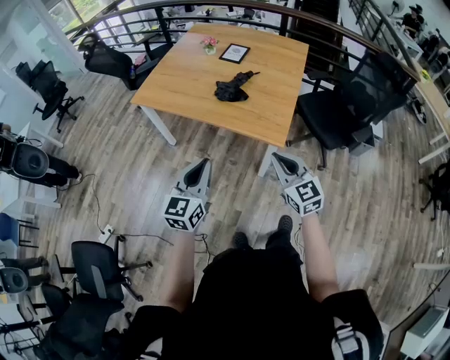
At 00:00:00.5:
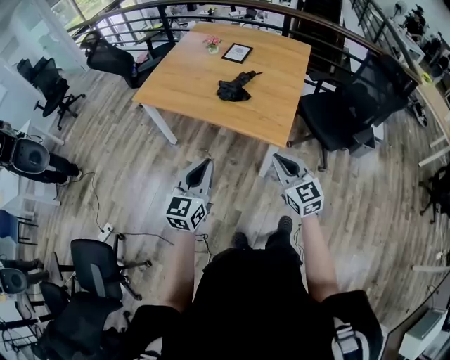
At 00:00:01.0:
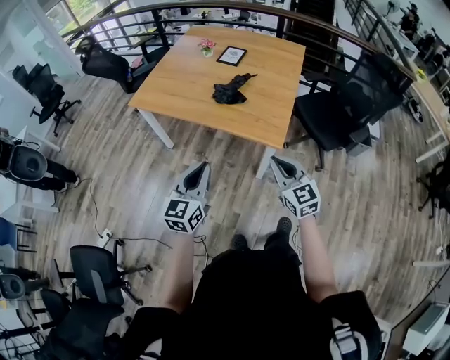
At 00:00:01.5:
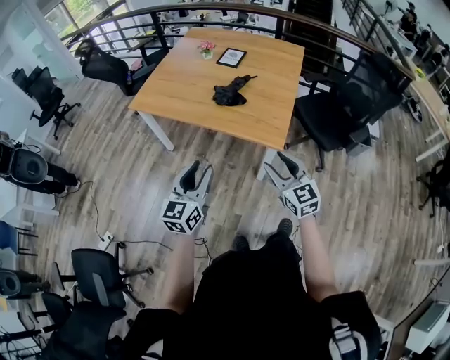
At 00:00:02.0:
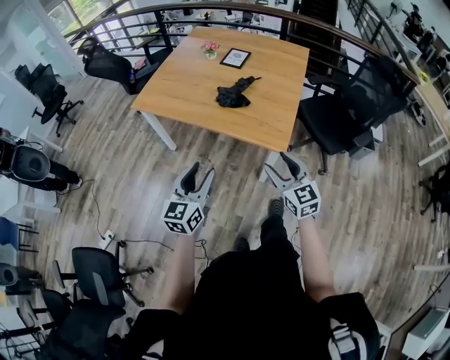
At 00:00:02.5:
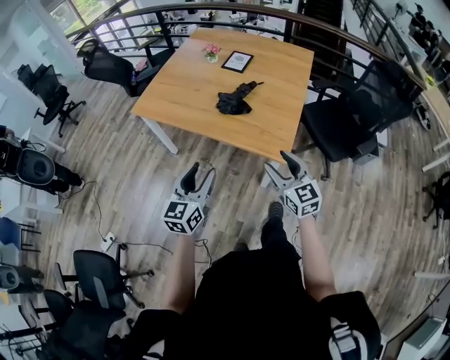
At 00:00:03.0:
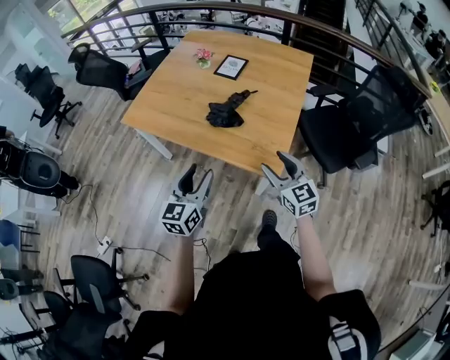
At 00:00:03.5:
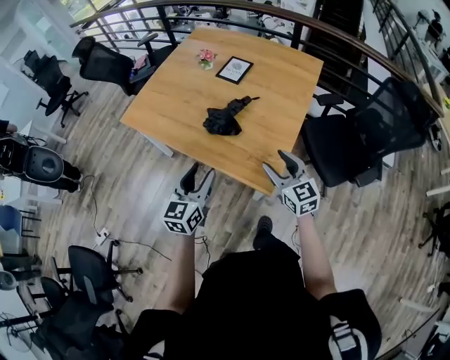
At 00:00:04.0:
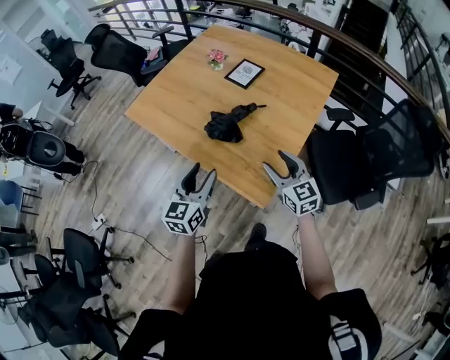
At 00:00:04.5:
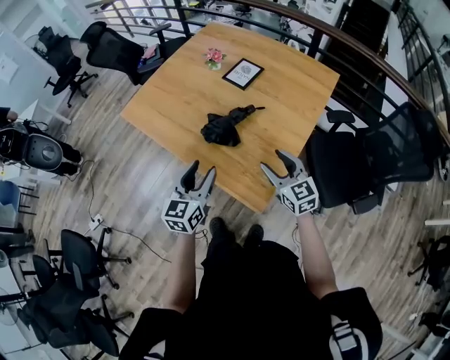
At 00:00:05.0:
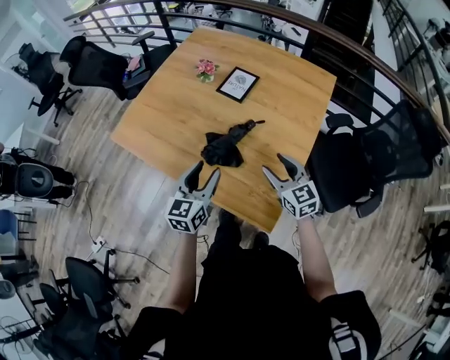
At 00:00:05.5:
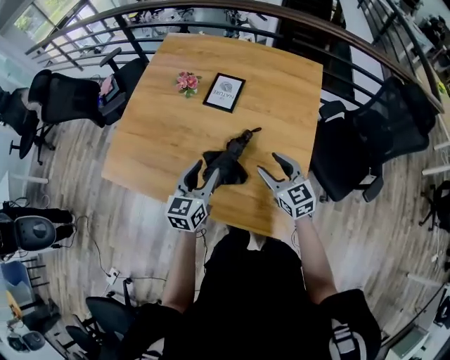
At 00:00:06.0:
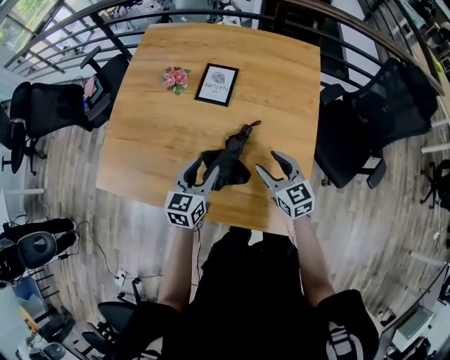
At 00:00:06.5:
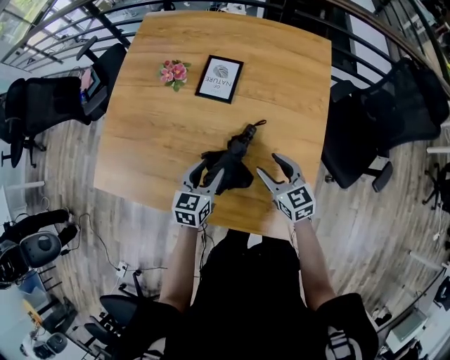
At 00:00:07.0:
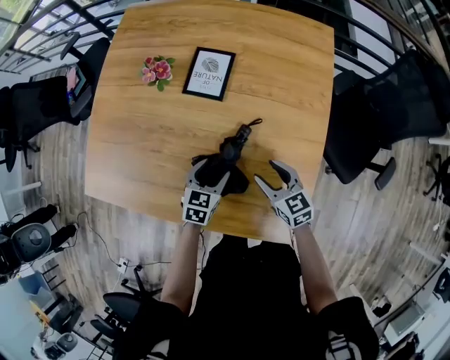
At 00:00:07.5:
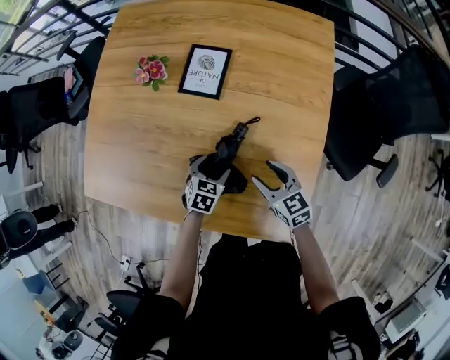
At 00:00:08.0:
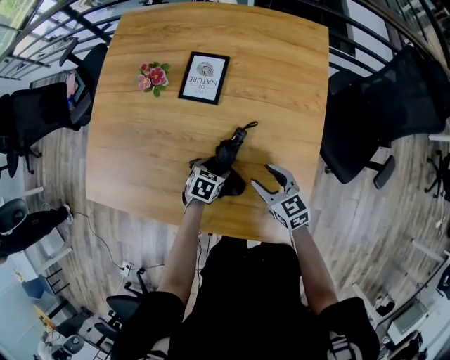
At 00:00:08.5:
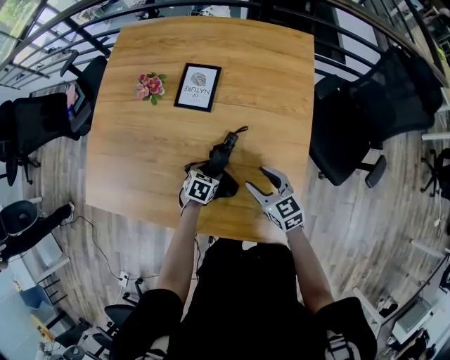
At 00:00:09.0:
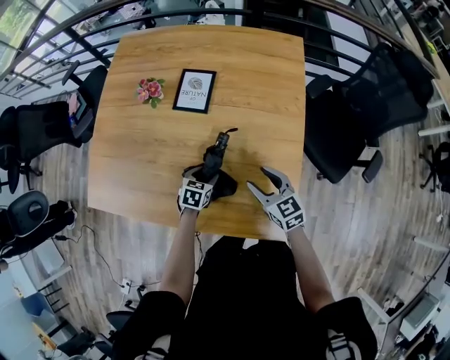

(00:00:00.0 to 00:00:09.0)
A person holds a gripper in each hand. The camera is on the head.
00:00:00.0 - 00:00:02.0: The left gripper opens. The right gripper opens its fingers.
00:00:02.0 - 00:00:04.5: Both grippers travel together forward and to the right, approximately 30 cm.
00:00:04.5 - 00:00:07.0: The right gripper heads forward and downward, covering approximately 25 cm, and swivels approximately 30 degrees, while the left gripper shifts roughly 35 cm forward and downward, and turns by about 40 degrees.
00:00:07.0 - 00:00:09.0: The right gripper heads upward, covering some 5 cm.

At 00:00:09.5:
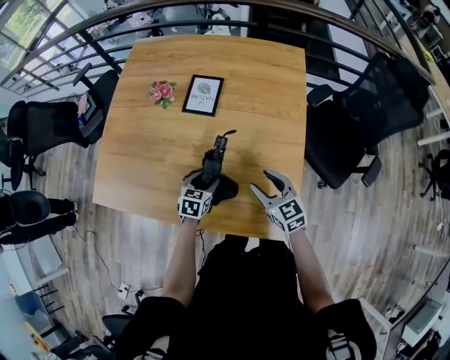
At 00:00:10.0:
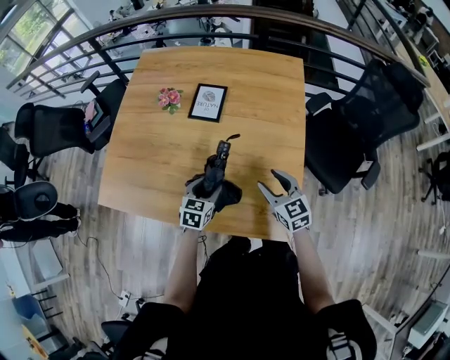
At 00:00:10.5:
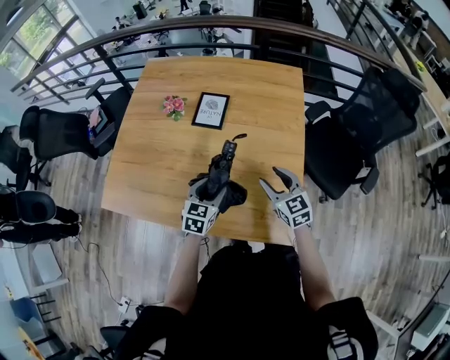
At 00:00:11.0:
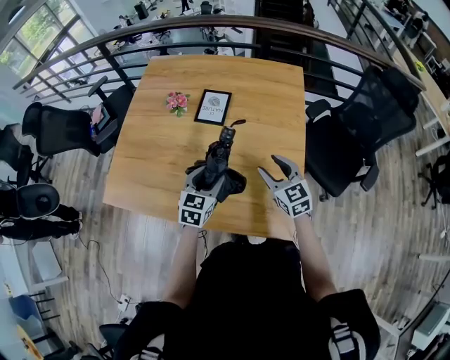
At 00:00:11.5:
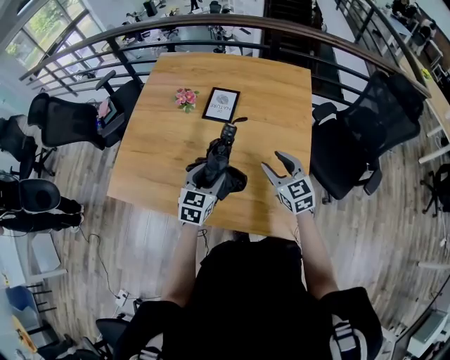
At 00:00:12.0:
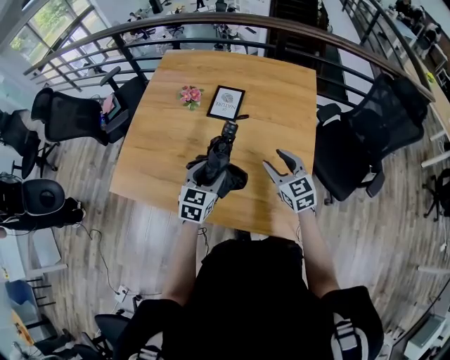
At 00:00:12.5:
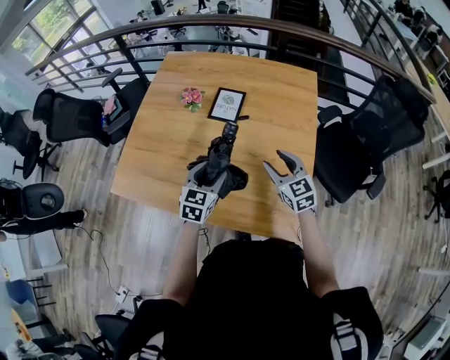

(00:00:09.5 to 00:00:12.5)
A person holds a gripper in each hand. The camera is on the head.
00:00:09.5 - 00:00:11.0: The right gripper moves upward, approximately 5 cm, while the left gripper travels upward by approximately 15 cm, and turns by roughly 20 degrees.
00:00:11.0 - 00:00:12.5: The grippers make only small movements.

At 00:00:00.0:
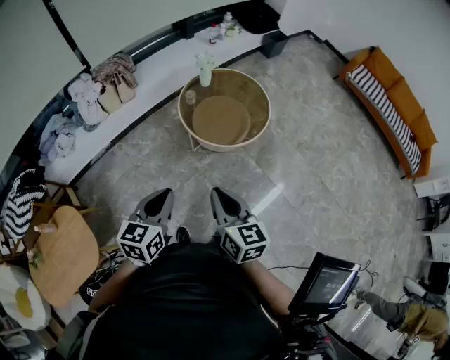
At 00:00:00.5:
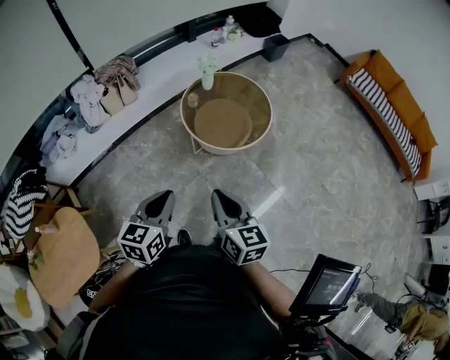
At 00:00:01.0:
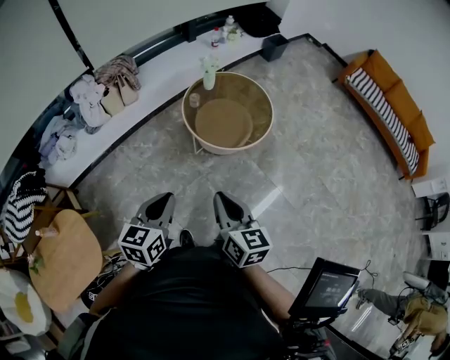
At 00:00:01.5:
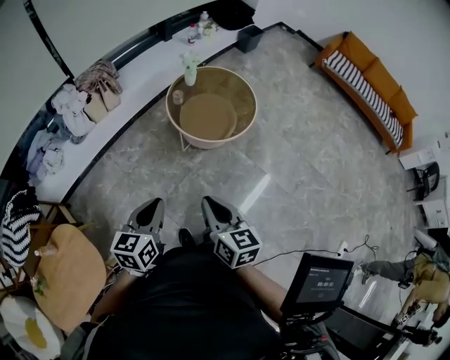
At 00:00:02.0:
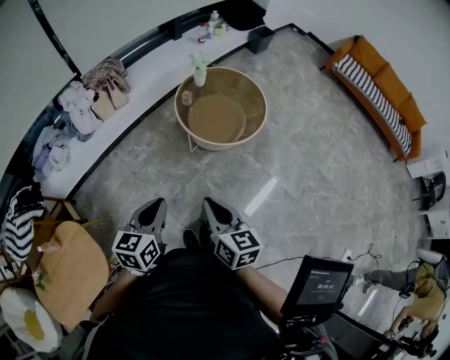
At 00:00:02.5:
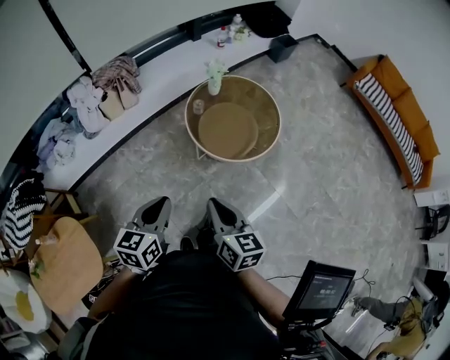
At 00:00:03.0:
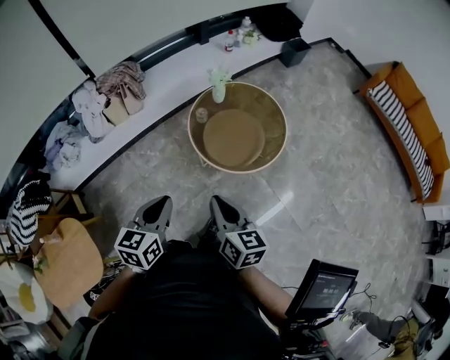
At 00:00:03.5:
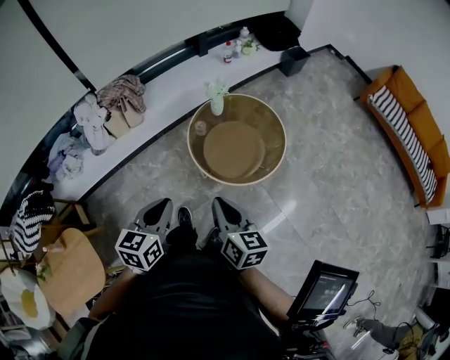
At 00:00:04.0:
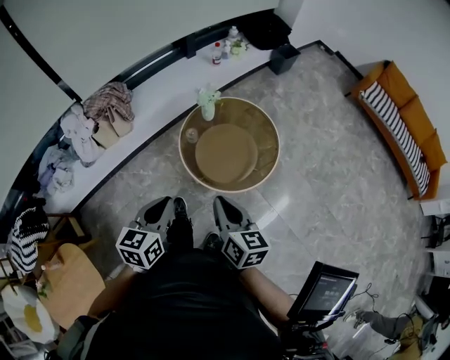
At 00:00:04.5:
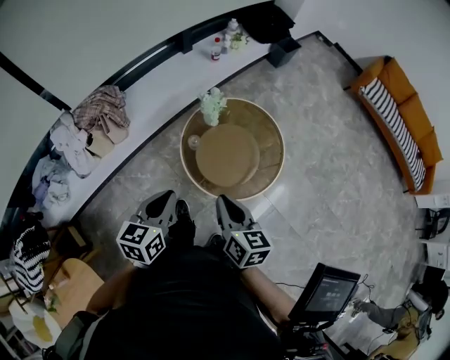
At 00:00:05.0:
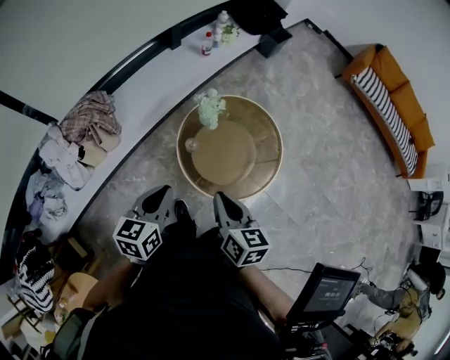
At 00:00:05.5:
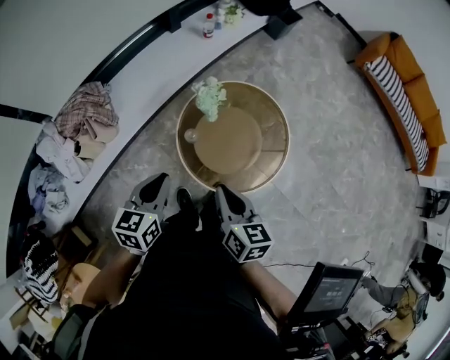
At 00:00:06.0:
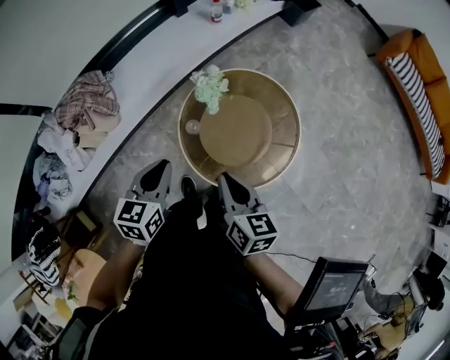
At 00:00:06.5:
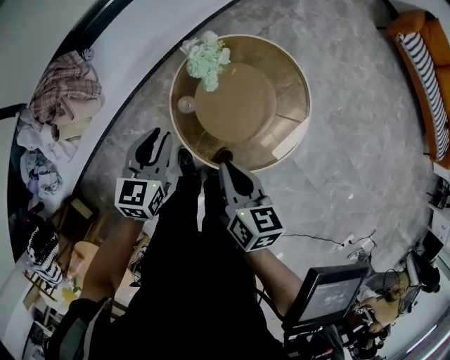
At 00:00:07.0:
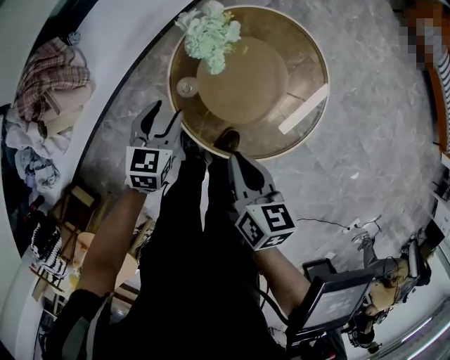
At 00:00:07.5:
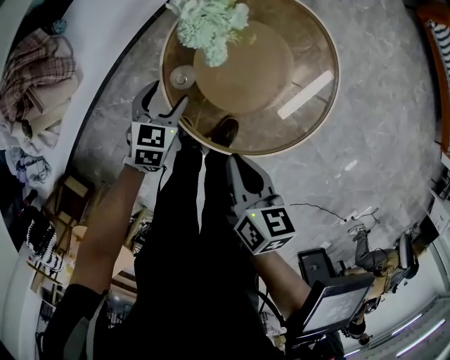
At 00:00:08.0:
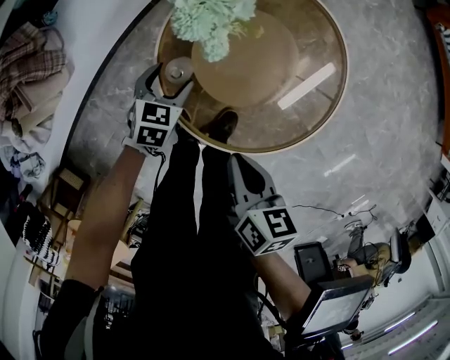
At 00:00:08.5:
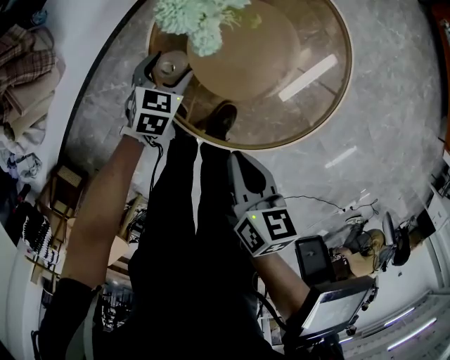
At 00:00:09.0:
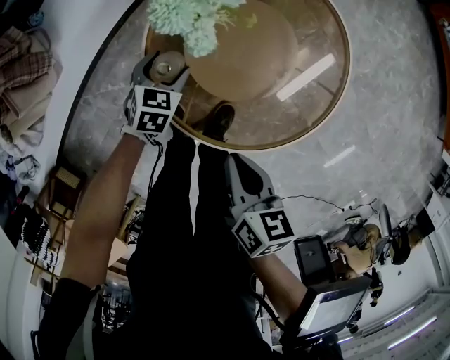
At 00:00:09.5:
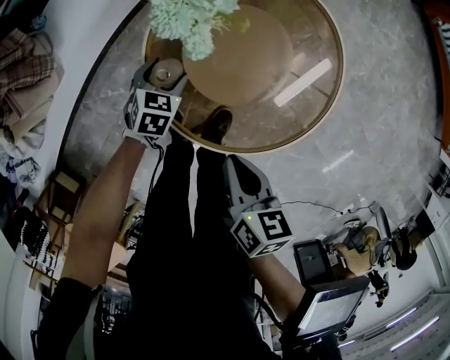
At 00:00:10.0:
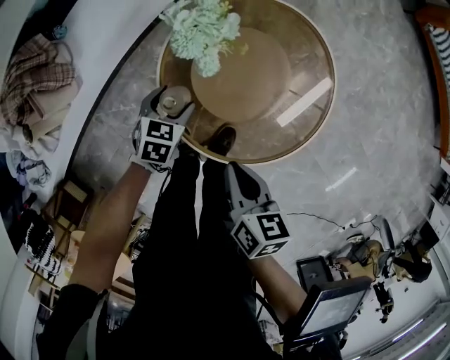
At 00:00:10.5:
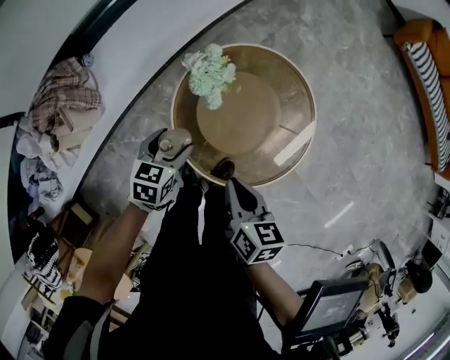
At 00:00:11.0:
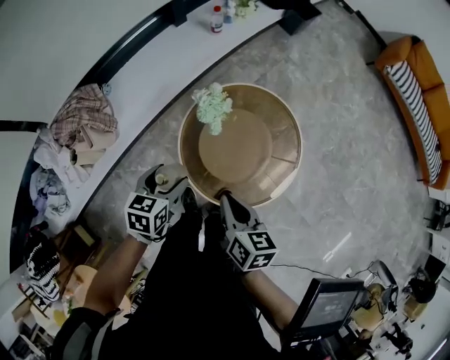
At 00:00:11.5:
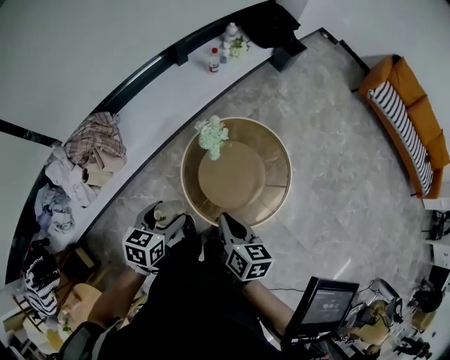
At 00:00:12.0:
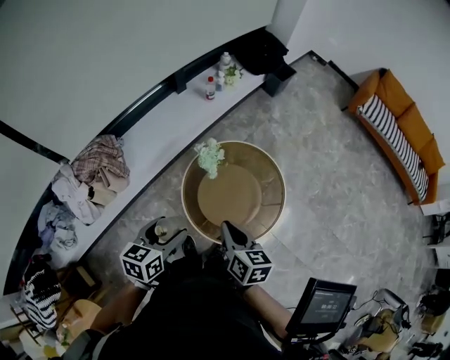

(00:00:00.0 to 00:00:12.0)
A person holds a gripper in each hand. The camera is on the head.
00:00:00.0 - 00:00:02.0: The grippers both shift to the left by approximately 10 cm.
00:00:02.0 - 00:00:04.0: The two grippers go some 25 cm forward.
00:00:04.0 - 00:00:06.0: The two grippers go about 25 cm forward.
00:00:06.0 - 00:00:08.0: The right gripper shifts roughly 20 cm downward, and turns by about 20 degrees. The left gripper travels downward by roughly 35 cm, turns by approximately 30 degrees, and opens up.
00:00:08.0 - 00:00:10.0: The grippers make only small movements.
00:00:10.0 - 00:00:12.0: The left gripper heads upward, covering about 40 cm, and rotates approximately 30 degrees. The right gripper is displaced upward by some 25 cm.

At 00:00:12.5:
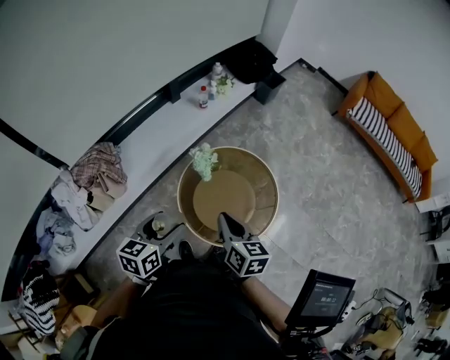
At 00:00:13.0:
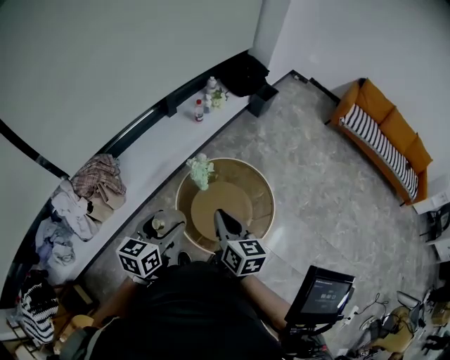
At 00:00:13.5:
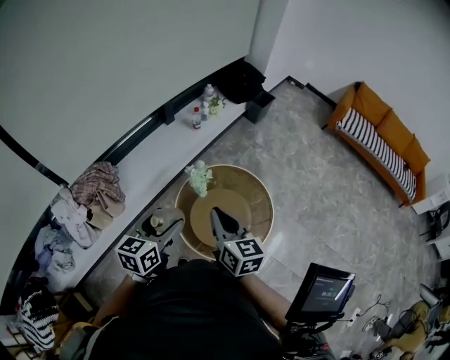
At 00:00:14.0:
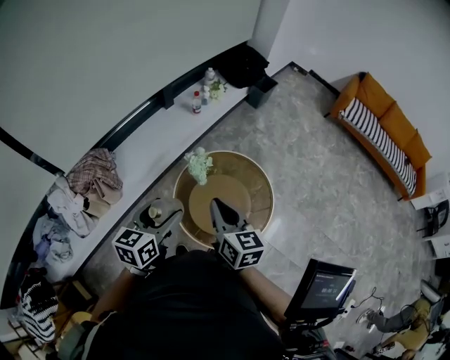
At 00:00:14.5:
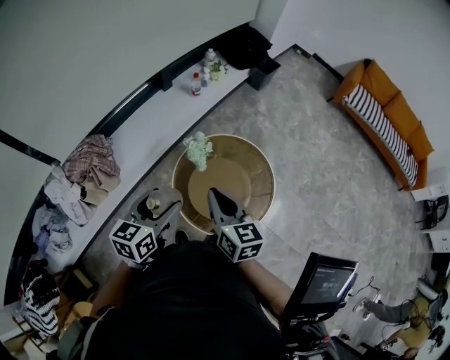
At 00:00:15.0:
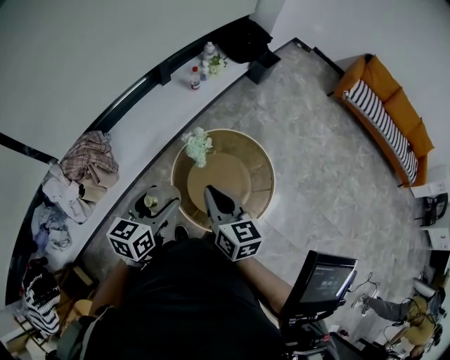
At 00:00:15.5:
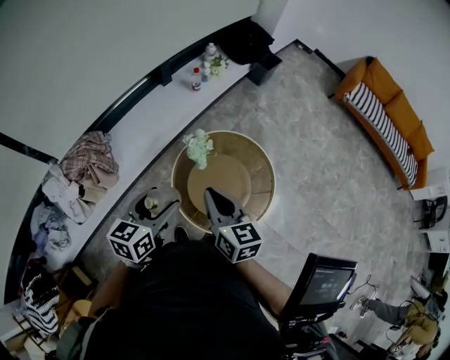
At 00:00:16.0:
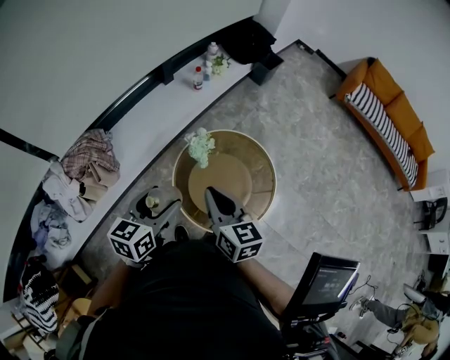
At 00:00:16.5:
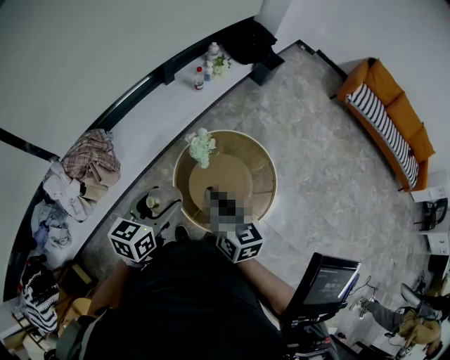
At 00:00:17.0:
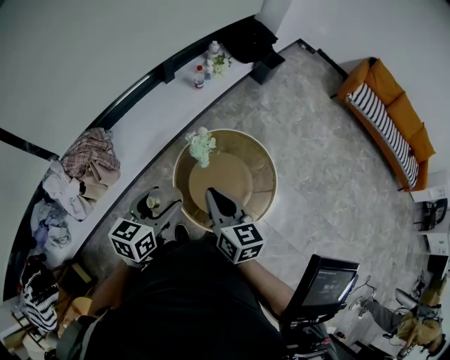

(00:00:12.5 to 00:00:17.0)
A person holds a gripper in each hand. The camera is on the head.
00:00:12.5 - 00:00:14.5: The left gripper moves some 5 cm; the right gripper shifts by about 5 cm.
00:00:14.5 - 00:00:17.0: The grippers stay close to where they were, moving slightly.
